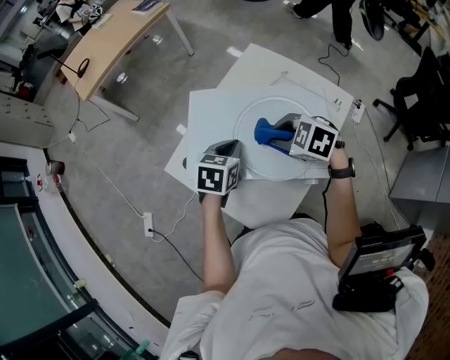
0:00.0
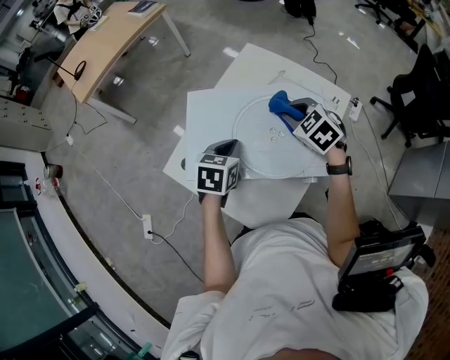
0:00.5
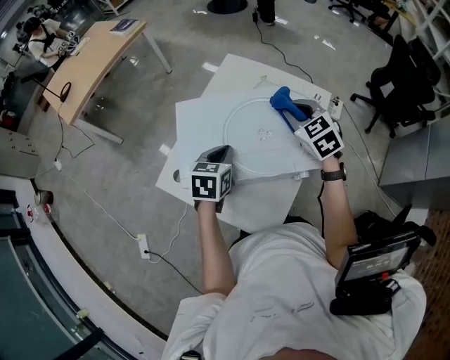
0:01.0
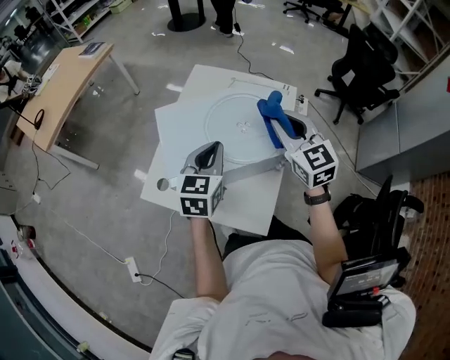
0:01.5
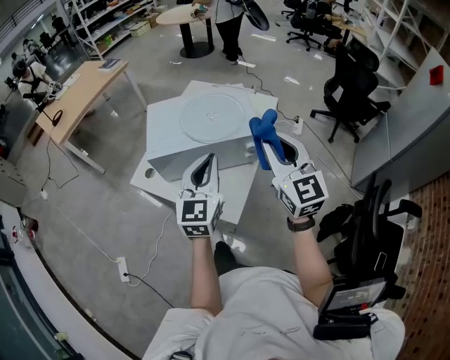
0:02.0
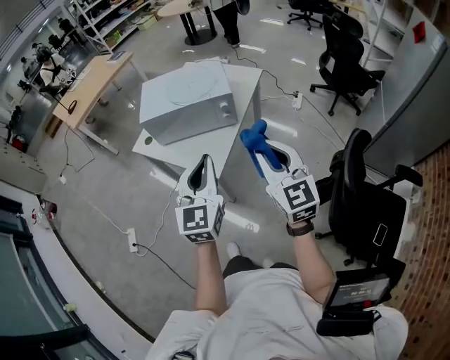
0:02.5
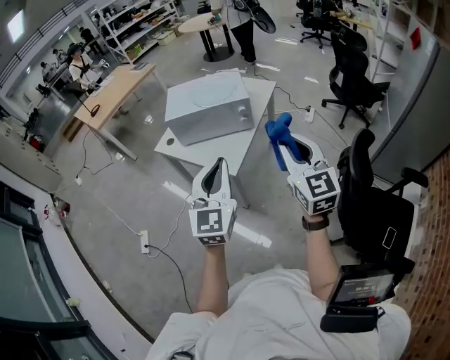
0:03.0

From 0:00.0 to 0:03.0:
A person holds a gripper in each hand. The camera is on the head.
From 0:00.0 to 0:01.5: The left gripper shifts roughly 10 cm upward, and swivels approximately 30 degrees. Meanwhile the right gripper shifts some 15 cm upward, and points its fingers about 40 degrees further upward.
From 0:01.5 to 0:03.0: The pair of grippers is taken backward, approximately 50 cm. The left gripper swivels approximately 30 degrees.

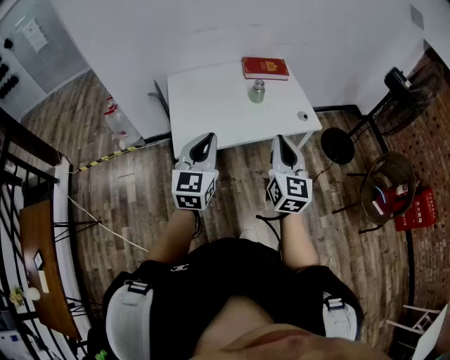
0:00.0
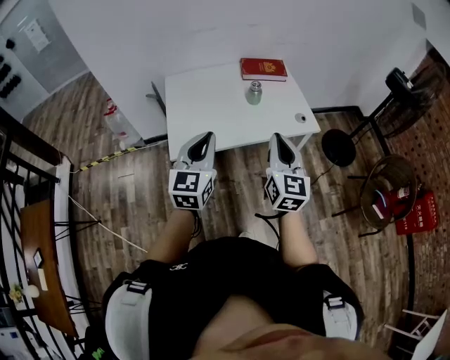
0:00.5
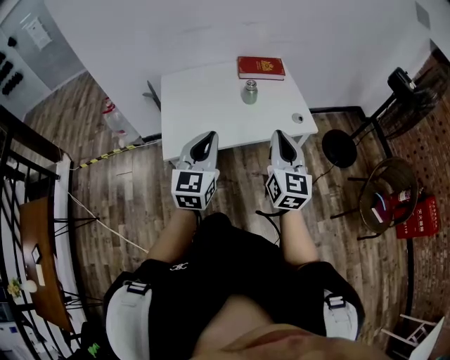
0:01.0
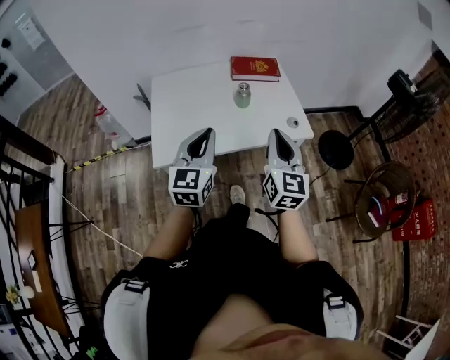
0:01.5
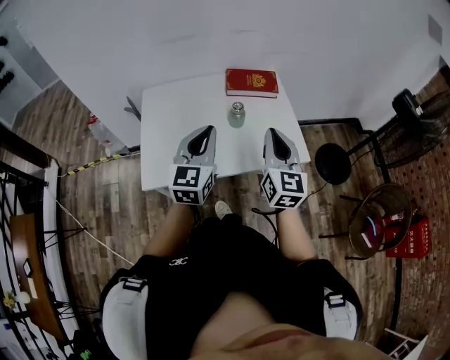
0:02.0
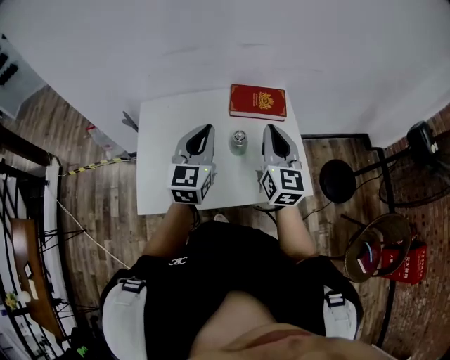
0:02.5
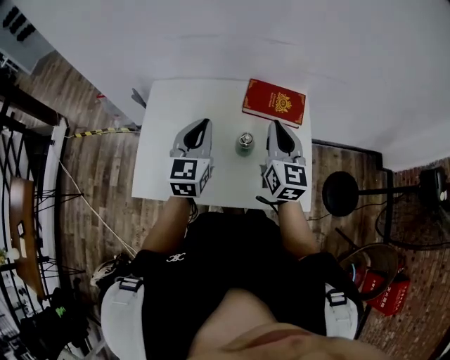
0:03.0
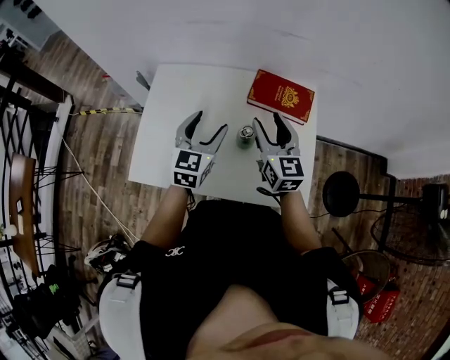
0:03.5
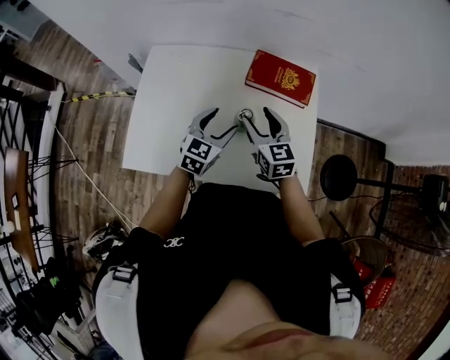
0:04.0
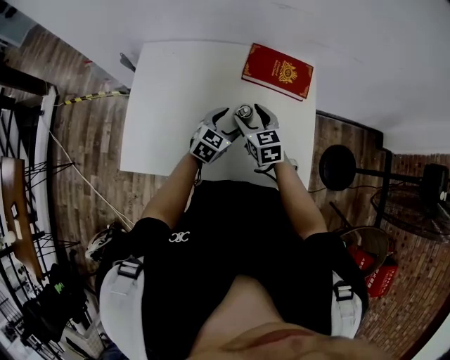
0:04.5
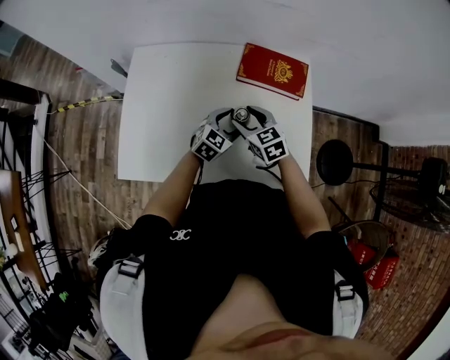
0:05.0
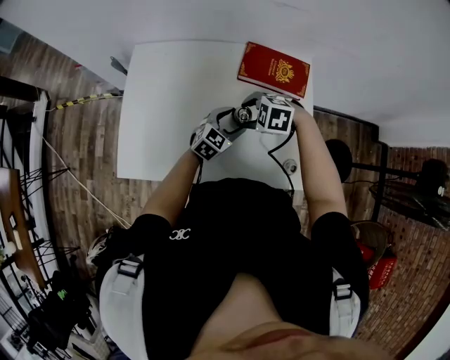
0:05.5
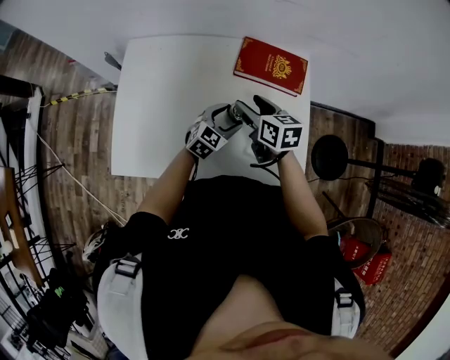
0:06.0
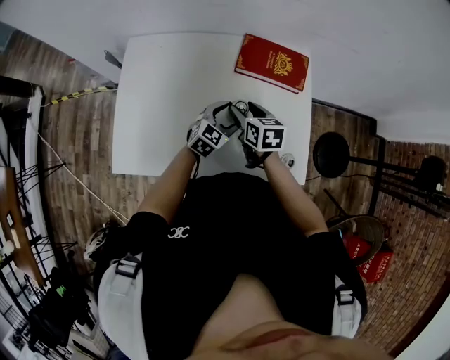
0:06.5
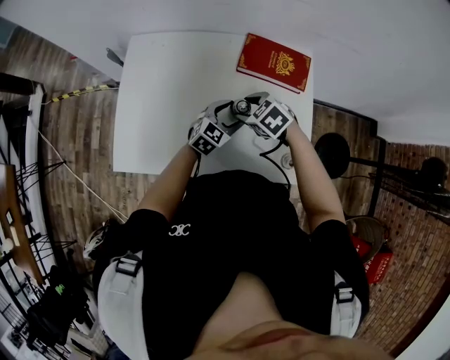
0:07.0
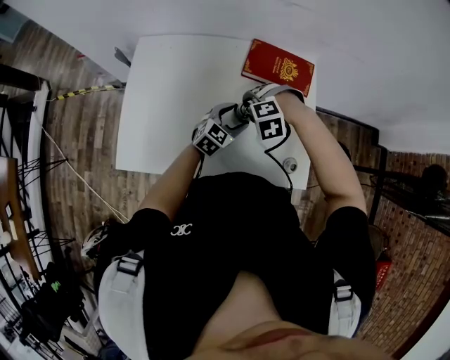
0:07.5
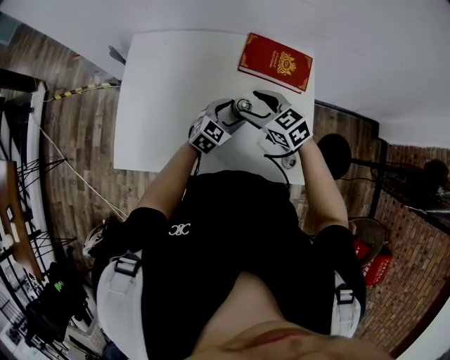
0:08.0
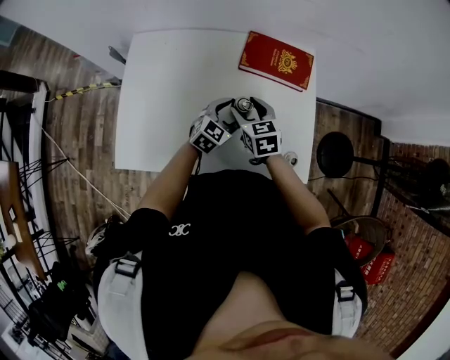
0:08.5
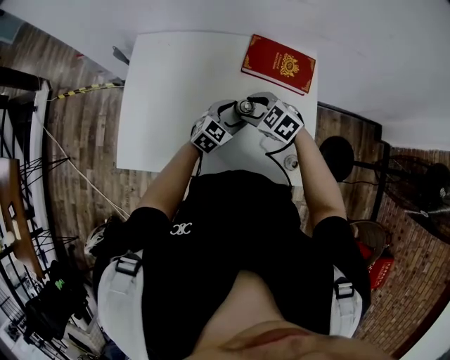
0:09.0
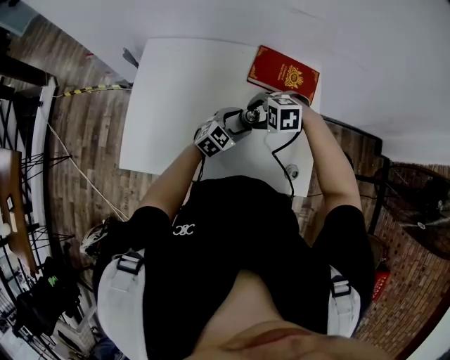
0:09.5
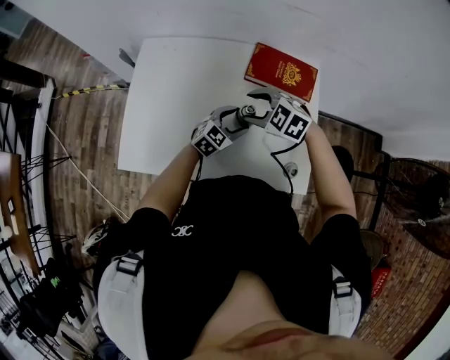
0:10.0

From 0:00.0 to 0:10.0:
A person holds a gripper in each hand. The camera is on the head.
From 0:00.0 to 0:02.0: The left gripper travels forward and to the right by approximately 25 cm. The right gripper is displaced forward by some 20 cm.
From 0:02.0 to 0:04.0: Both grippers travel together forward and downward, approximately 30 cm. The left gripper changes its angle by approximately 20 degrees, and opens up. The right gripper turns by about 40 degrees, and opens up.
From 0:04.0 to 0:06.0: The left gripper goes roughly 10 cm downward, while the right gripper rotates roughly 20 degrees.
From 0:06.0 to 0:08.0: The right gripper travels downward and back again, approximately 10 cm each way, and rotates approximately 40 degrees.
From 0:08.0 to 0:10.0: The right gripper rotates roughly 30 degrees.

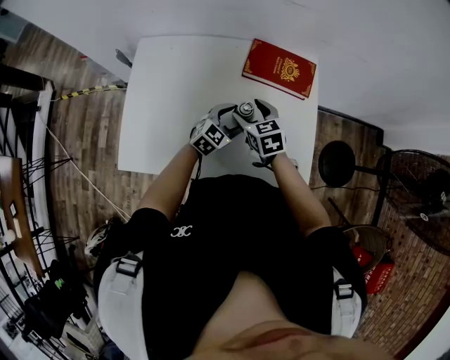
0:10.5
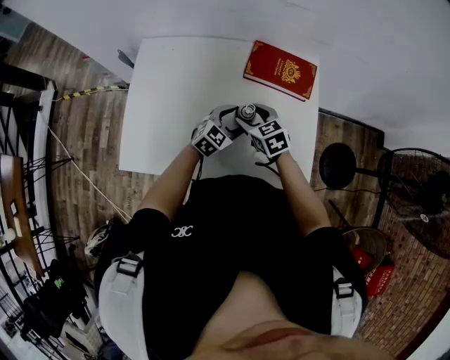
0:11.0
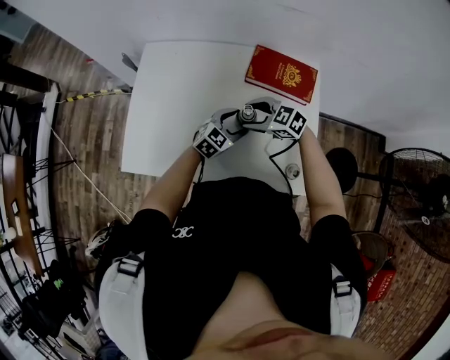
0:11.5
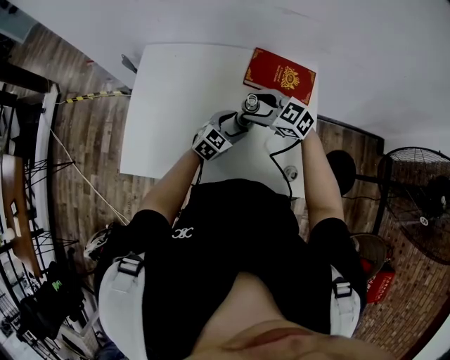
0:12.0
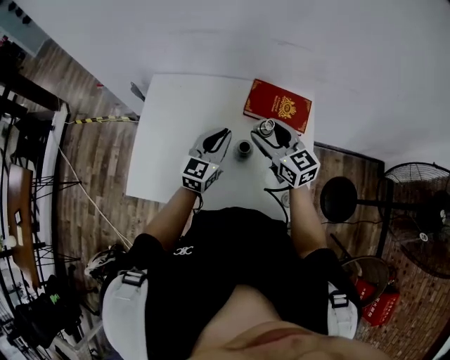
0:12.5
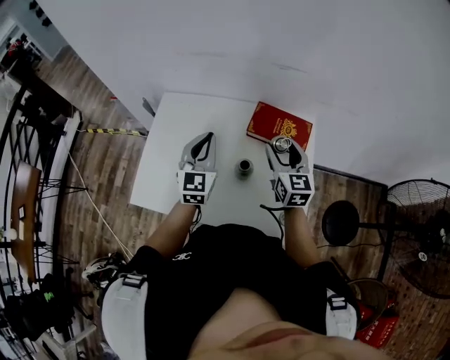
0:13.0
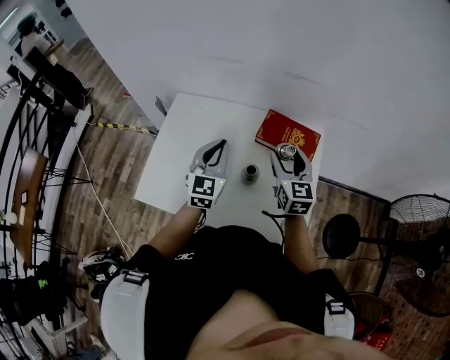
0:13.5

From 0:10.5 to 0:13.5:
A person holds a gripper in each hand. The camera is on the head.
From 0:10.5 to 0:12.0: The right gripper swivels roughly 40 degrees.
From 0:12.0 to 0:13.5: The left gripper heads upward and to the left, covering approximately 25 cm, turns by about 50 degrees, and closes. Meanwhile the right gripper travels upward and to the right by about 15 cm, and turns by approximately 50 degrees.

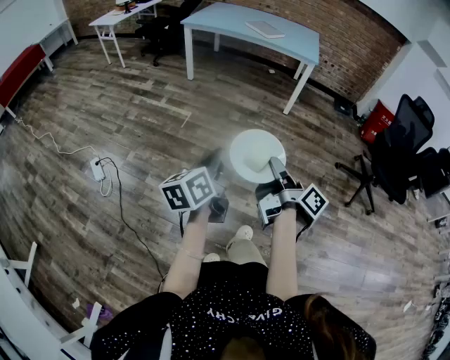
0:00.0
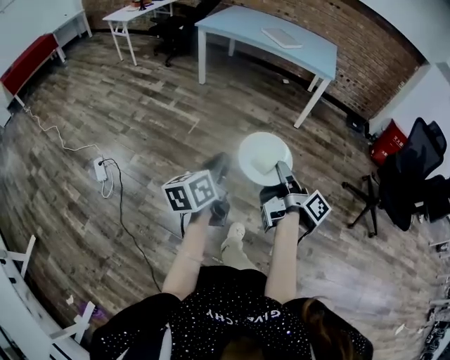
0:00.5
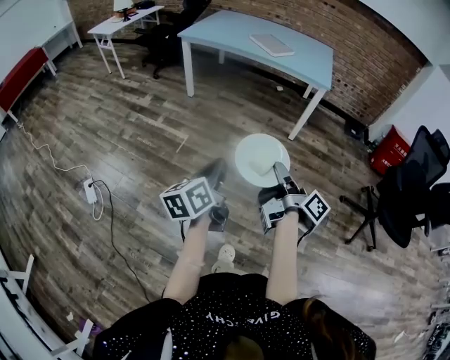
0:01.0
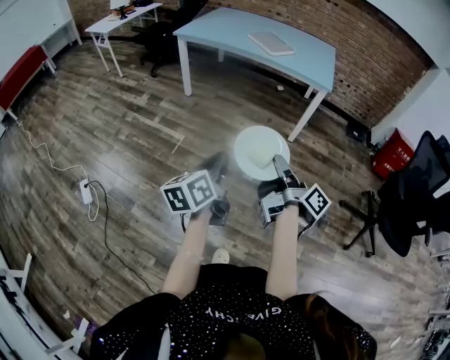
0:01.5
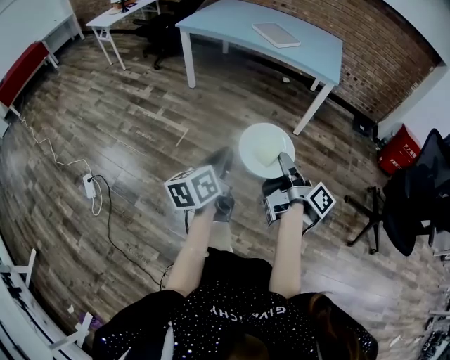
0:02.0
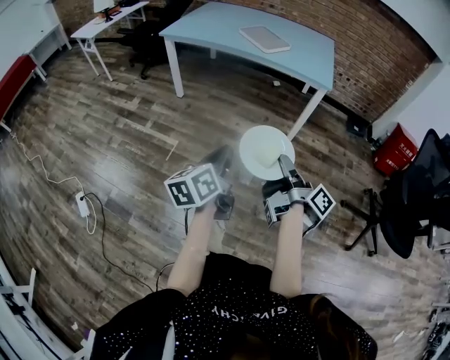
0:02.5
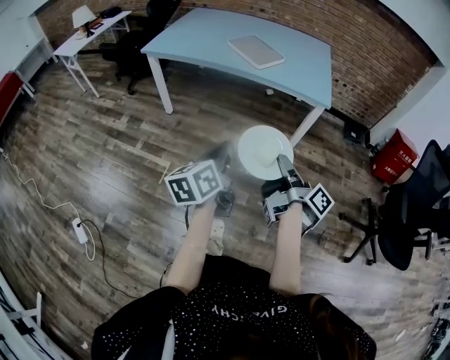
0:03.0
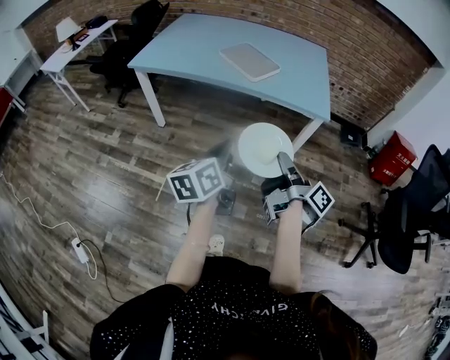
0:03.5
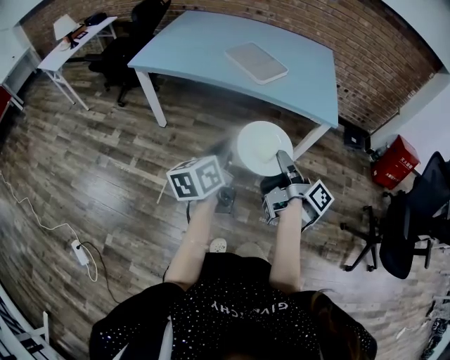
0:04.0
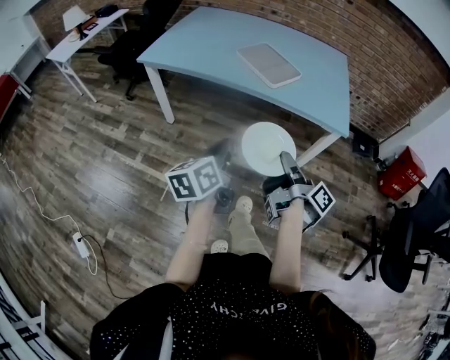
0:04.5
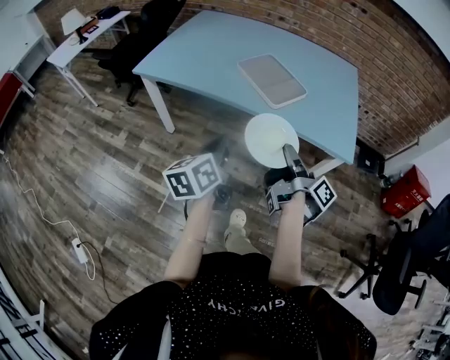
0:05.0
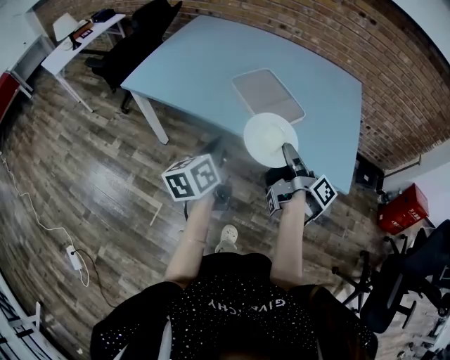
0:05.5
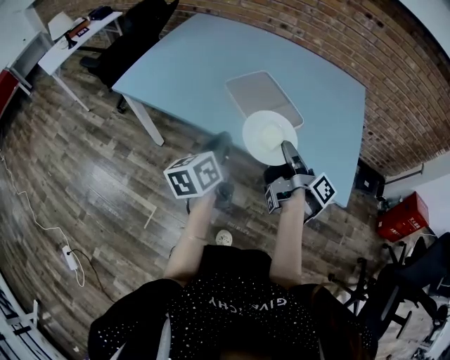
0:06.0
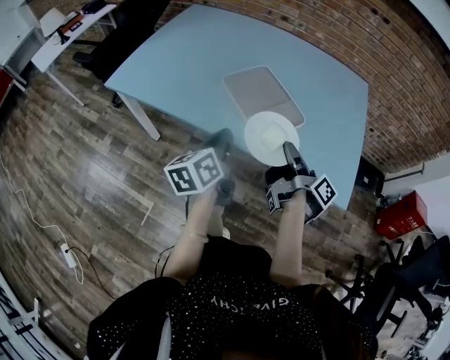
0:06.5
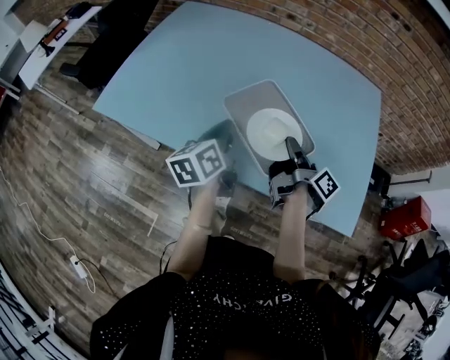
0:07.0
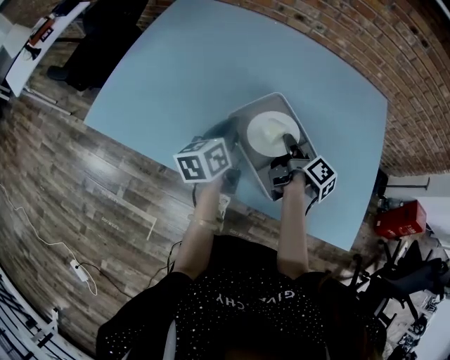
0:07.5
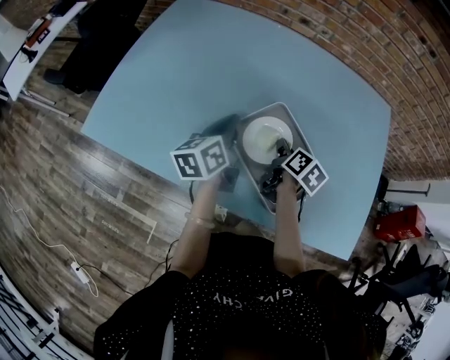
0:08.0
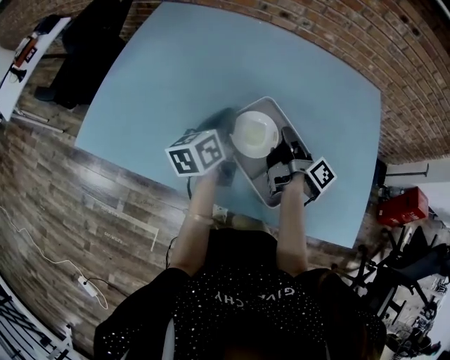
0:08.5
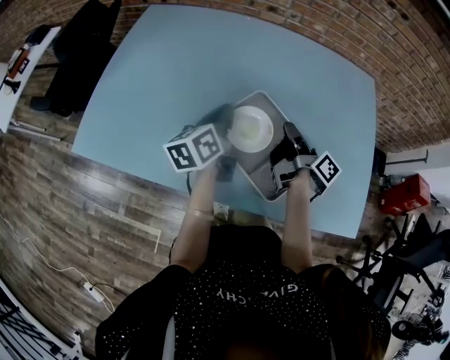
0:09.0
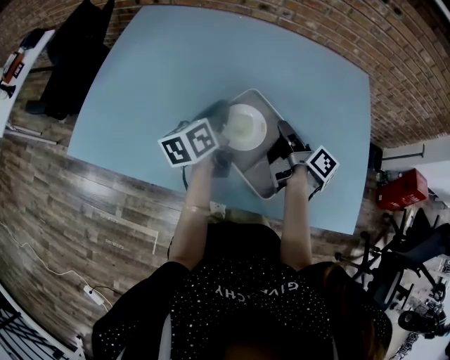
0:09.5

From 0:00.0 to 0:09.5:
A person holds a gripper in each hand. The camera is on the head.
From 0:00.0 to 0:02.0: The left gripper moves some 35 cm.
From 0:02.0 to 0:04.0: The left gripper ends up roughly 50 cm from where it was.
From 0:04.0 to 0:05.5: The left gripper ends up some 30 cm from where it was.
From 0:05.5 to 0:07.5: The left gripper shifts by roughly 40 cm.
From 0:07.5 to 0:09.5: The left gripper moves about 5 cm.

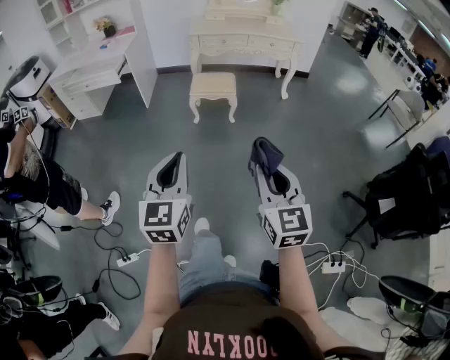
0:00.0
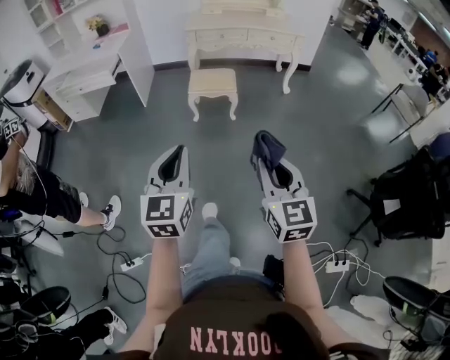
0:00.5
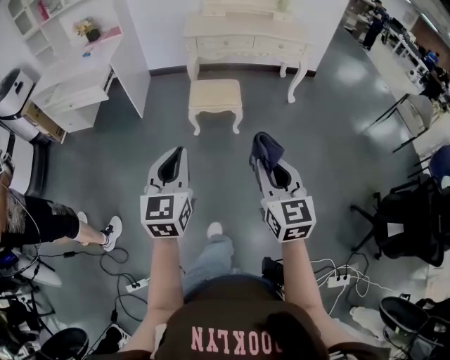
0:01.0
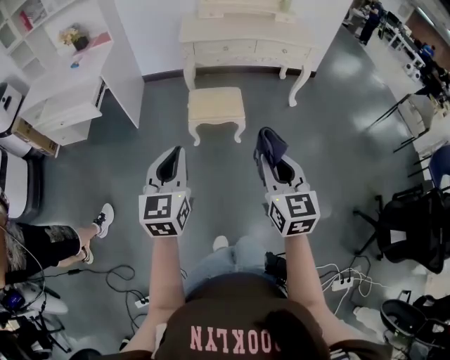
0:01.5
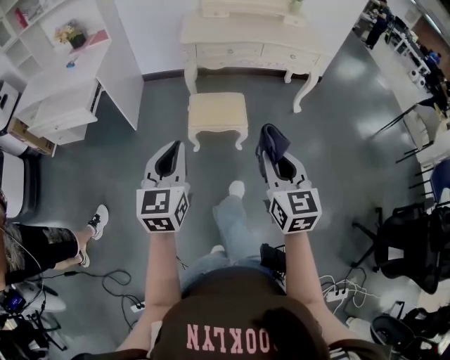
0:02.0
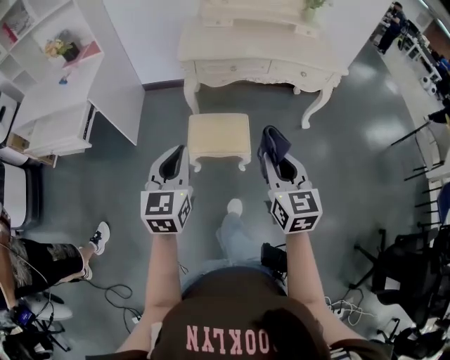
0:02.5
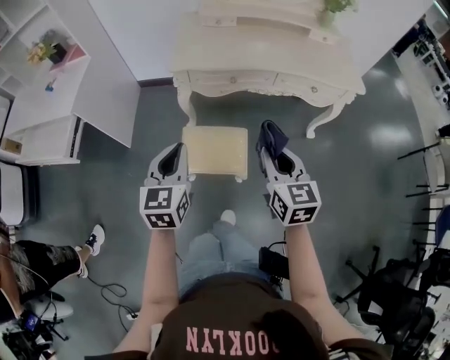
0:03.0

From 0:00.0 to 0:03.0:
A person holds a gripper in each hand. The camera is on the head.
From 0:00.0 to 0:01.5: The pair of grippers is taken forward, about 40 cm.
From 0:01.5 to 0:03.0: Both grippers are carried forward, approximately 50 cm.
